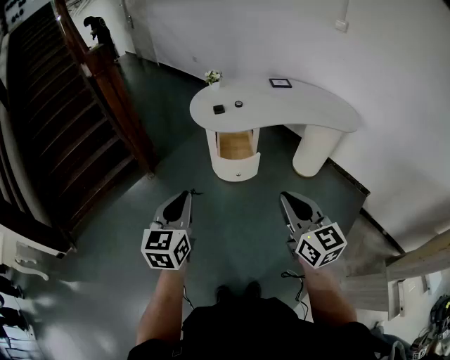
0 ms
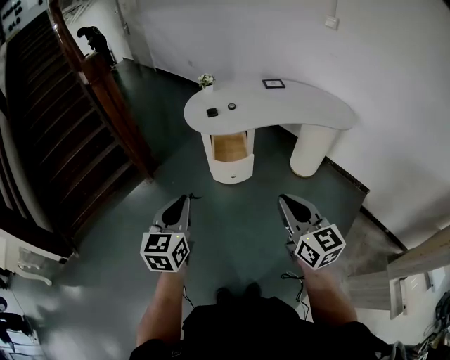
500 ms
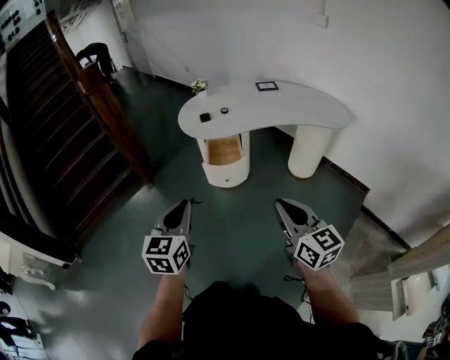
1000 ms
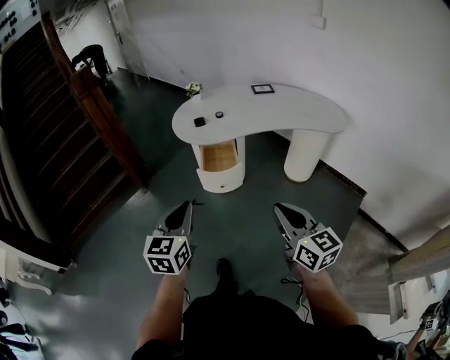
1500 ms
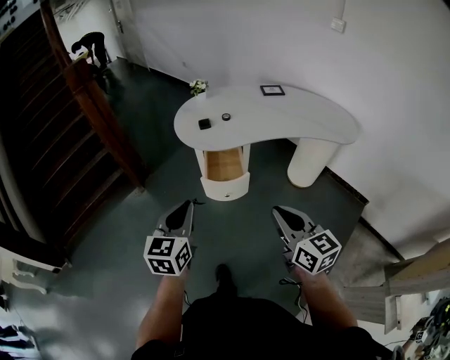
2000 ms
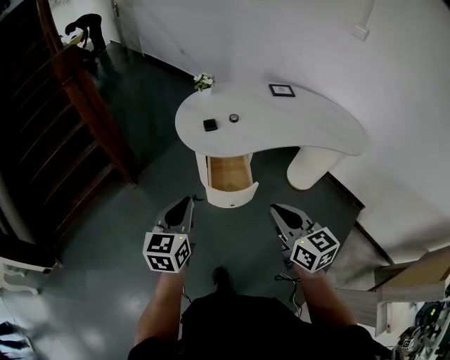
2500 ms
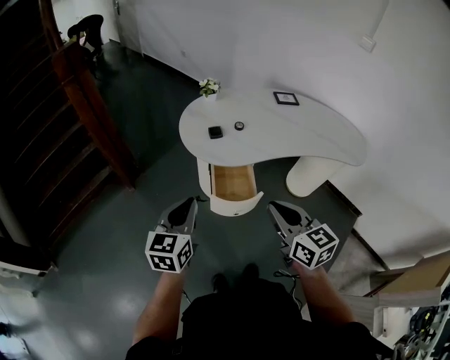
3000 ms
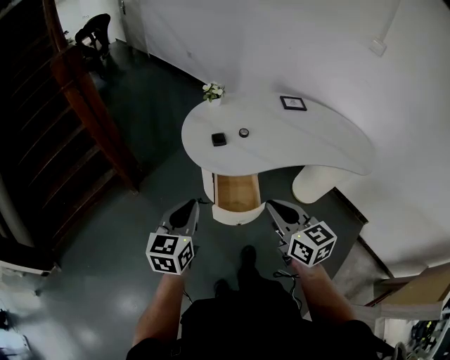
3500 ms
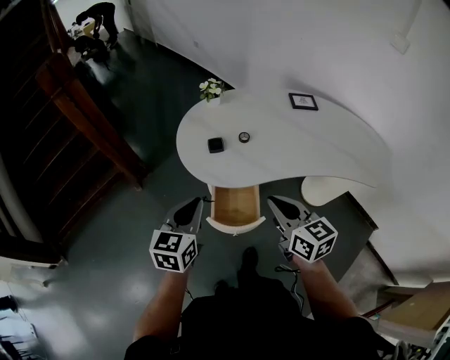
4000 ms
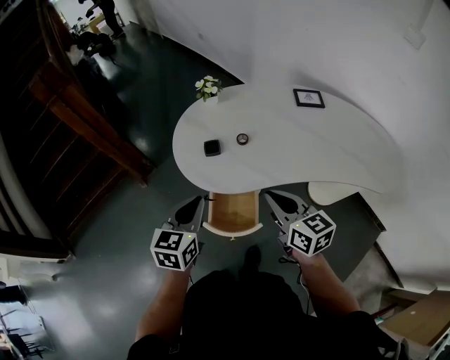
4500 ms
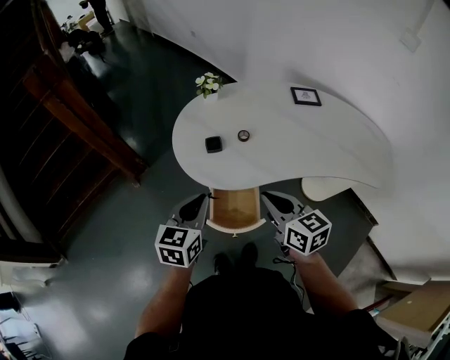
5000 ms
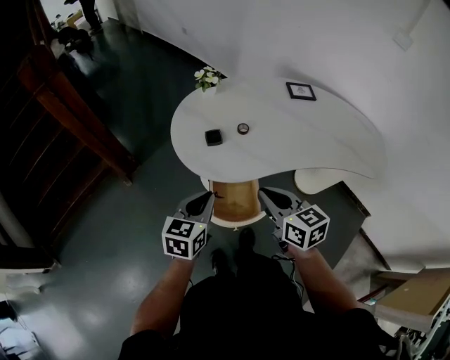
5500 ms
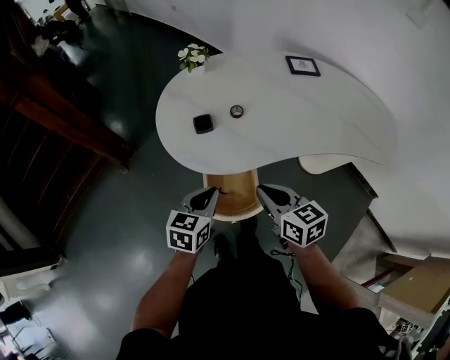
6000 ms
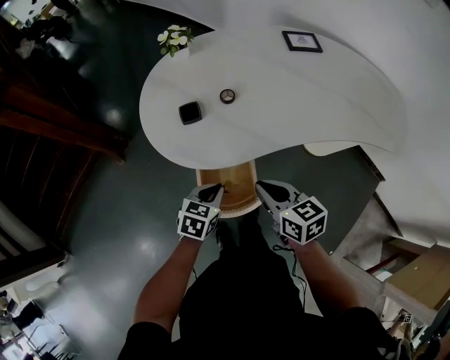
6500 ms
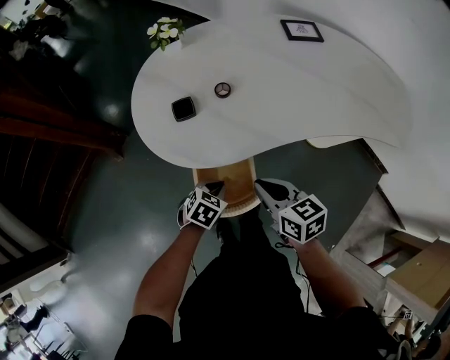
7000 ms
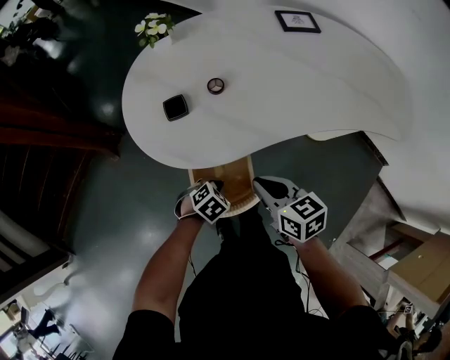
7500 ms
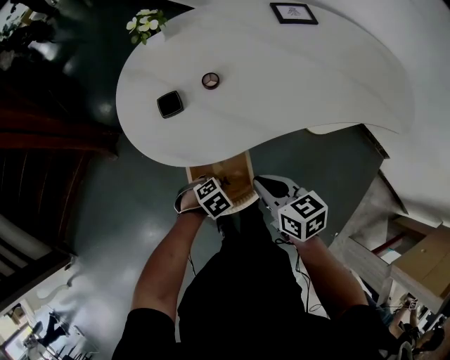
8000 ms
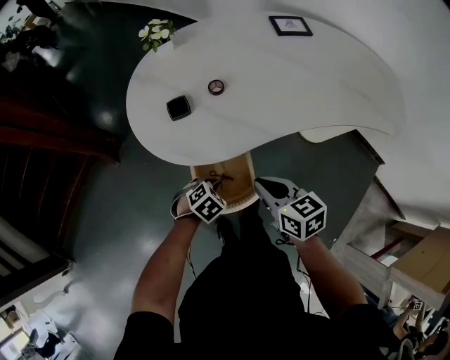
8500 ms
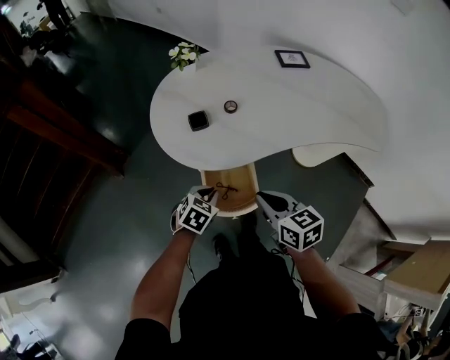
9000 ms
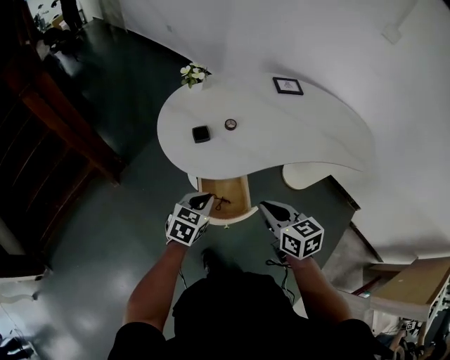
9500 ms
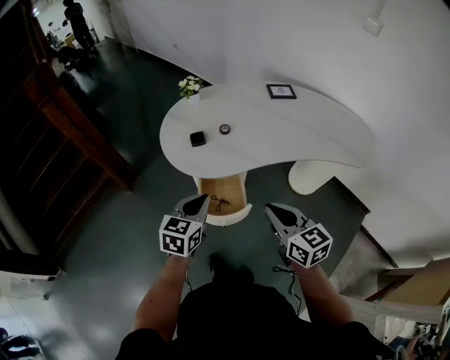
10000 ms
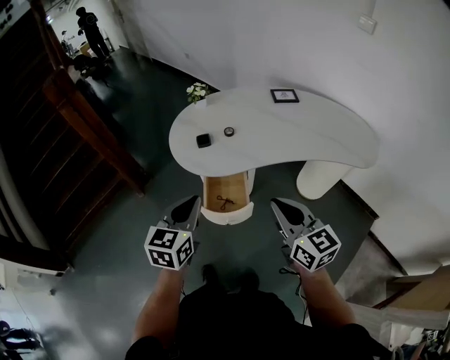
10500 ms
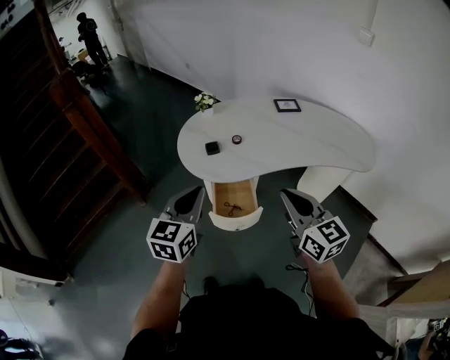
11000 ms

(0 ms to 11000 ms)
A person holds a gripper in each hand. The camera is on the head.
0 ms - 2000 ms: Both grippers travel together forward and to the right, about 10 cm.
2000 ms - 3500 ms: The grippers both shift forward by approximately 20 cm.
3500 ms - 5500 ms: The left gripper travels forward, to the right and downward by some 15 cm. Meanwhile the right gripper moves forward and downward, some 15 cm.
5500 ms - 7500 ms: The right gripper is displaced downward by about 15 cm. Meanwhile the left gripper is displaced downward by approximately 30 cm, and angles its fingers downward, by about 50 degrees.
7500 ms - 9000 ms: The left gripper is displaced upward by roughly 10 cm, and rotates approximately 20 degrees, while the right gripper goes roughly 5 cm upward.
9000 ms - 11000 ms: The right gripper is displaced upward and backward by some 25 cm, and rotates approximately 30 degrees. Meanwhile the left gripper goes about 35 cm upward, and points its fingers roughly 40 degrees further upward.

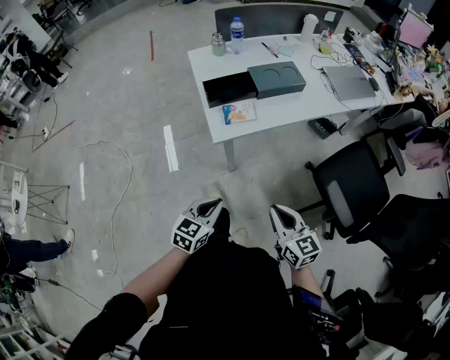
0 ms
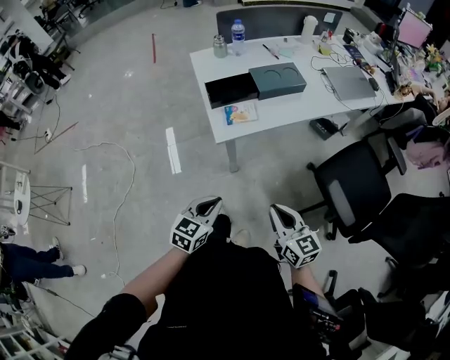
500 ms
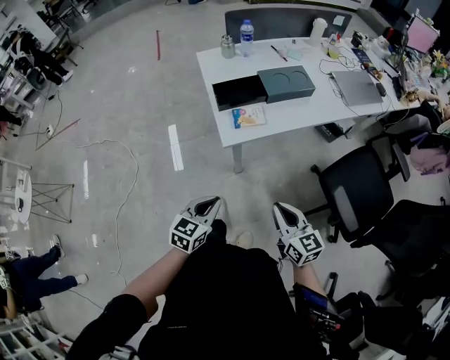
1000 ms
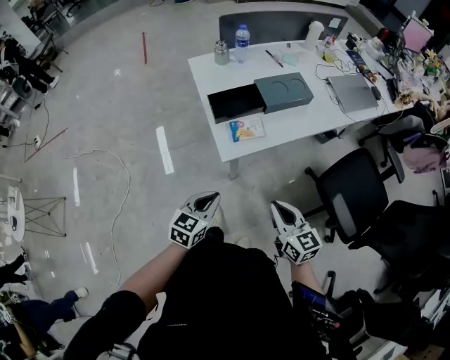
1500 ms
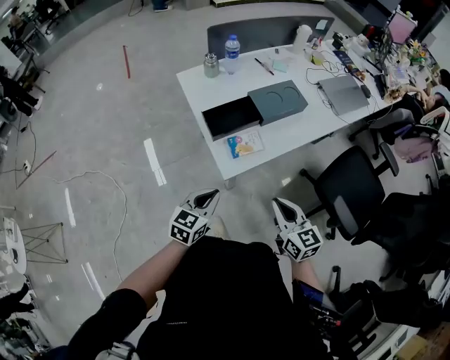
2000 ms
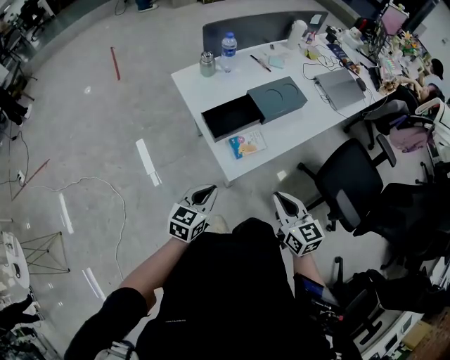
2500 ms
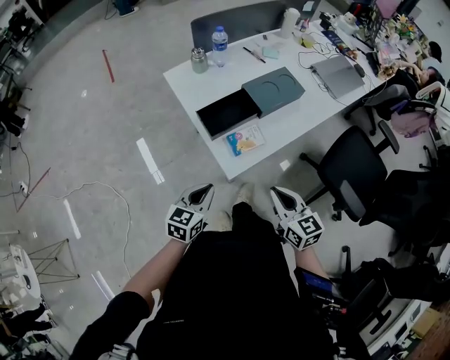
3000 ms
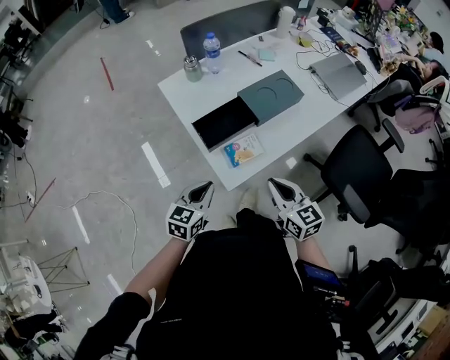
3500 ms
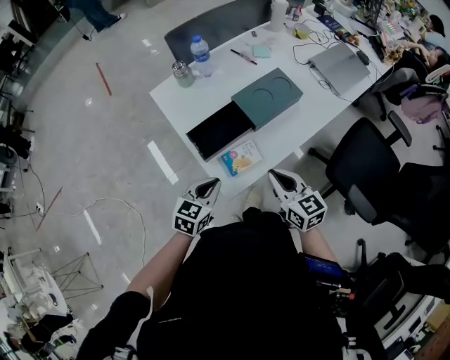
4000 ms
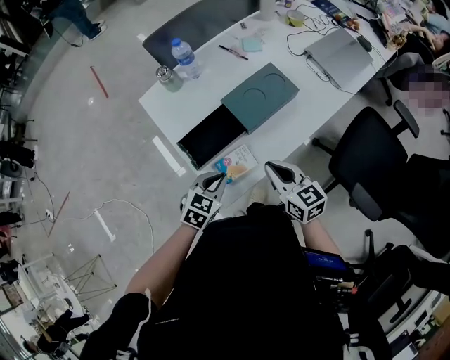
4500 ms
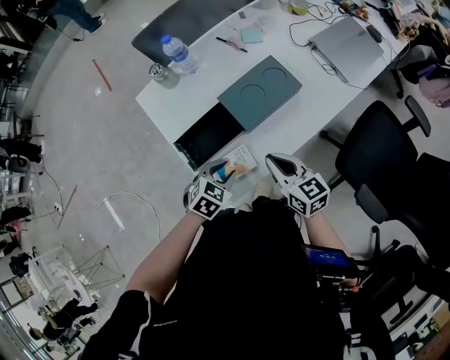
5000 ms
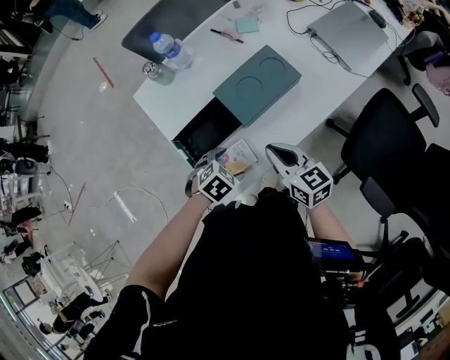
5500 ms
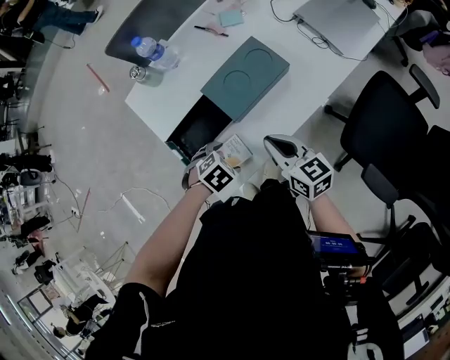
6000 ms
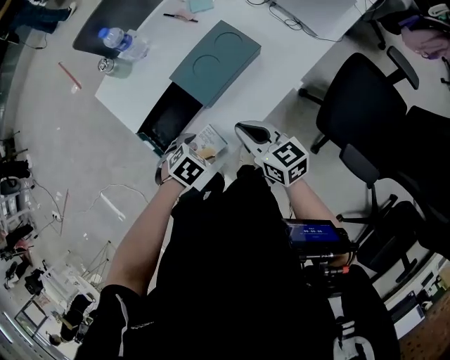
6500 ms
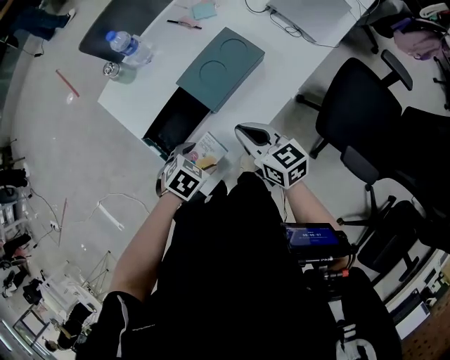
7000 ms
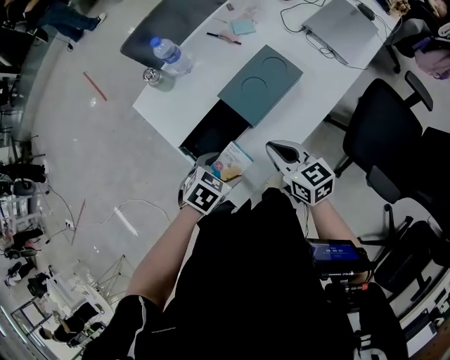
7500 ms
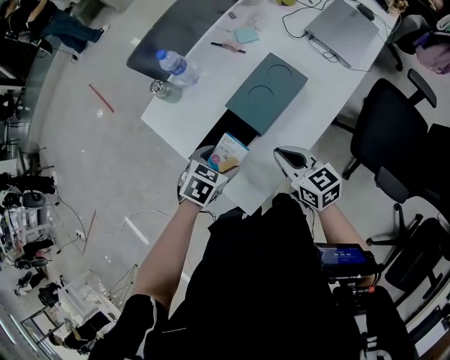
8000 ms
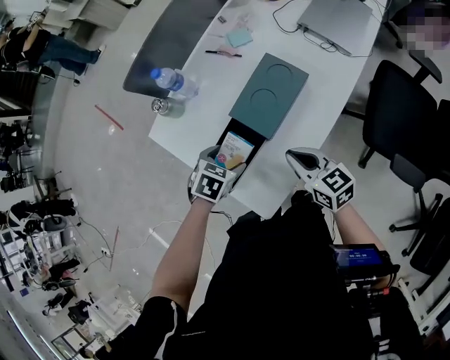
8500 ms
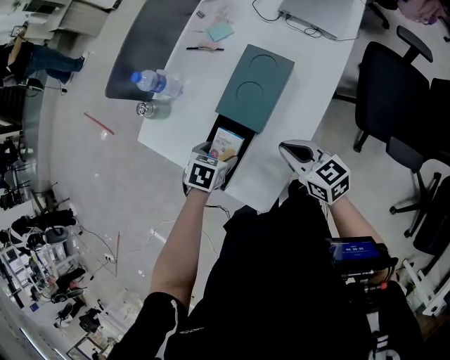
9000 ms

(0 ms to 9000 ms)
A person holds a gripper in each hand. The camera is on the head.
0 ms - 2000 ms: The two grippers go roughly 20 cm forward and to the left.
2000 ms - 4500 ms: The grippers both shift forward by approximately 20 cm. The left gripper rotates roughly 30 degrees.
4500 ms - 7000 ms: The left gripper turns by roughly 30 degrees, and opens up. Meanwhile the right gripper shifts by approximately 5 cm.
7000 ms - 9000 ms: The left gripper travels forward and to the left by roughly 15 cm.

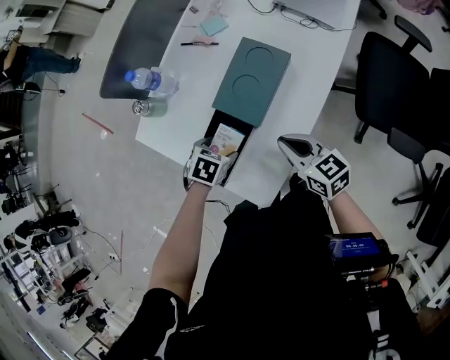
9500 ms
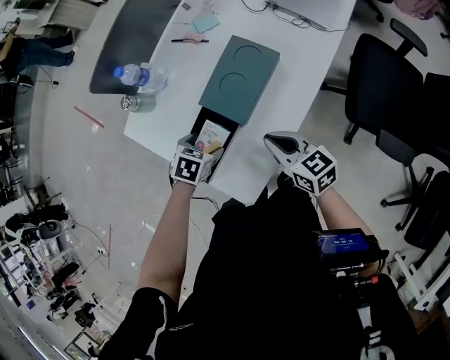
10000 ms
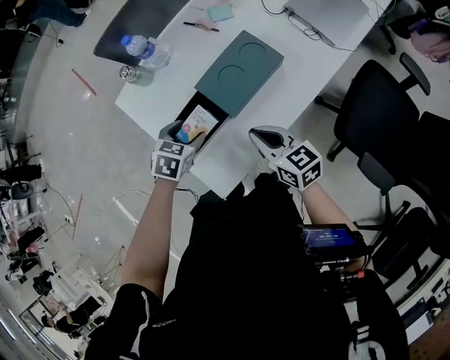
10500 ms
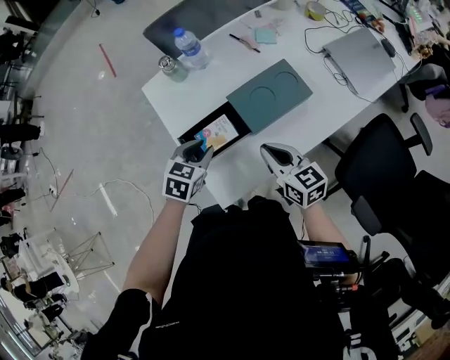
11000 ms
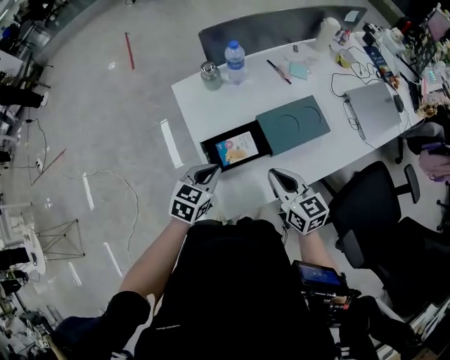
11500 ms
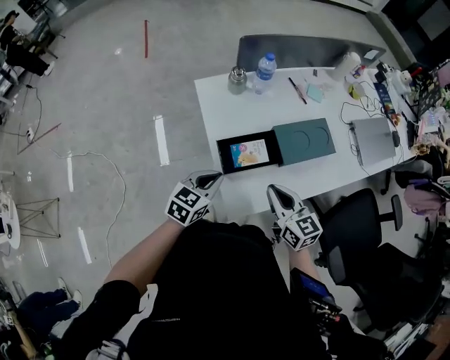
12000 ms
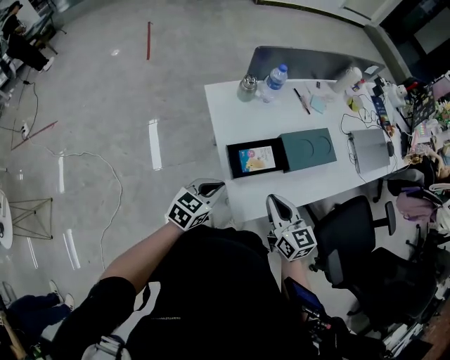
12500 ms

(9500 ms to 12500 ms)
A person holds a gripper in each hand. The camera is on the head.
9500 ms - 11000 ms: The right gripper swivels approximately 20 degrees; the left gripper shifts roughly 10 cm upward, rotates approximately 40 degrees, and closes.
11000 ms - 12500 ms: The right gripper shifts roughly 10 cm to the left and backward. The left gripper moves backward and to the left, approximately 15 cm, and turns by approximately 20 degrees.

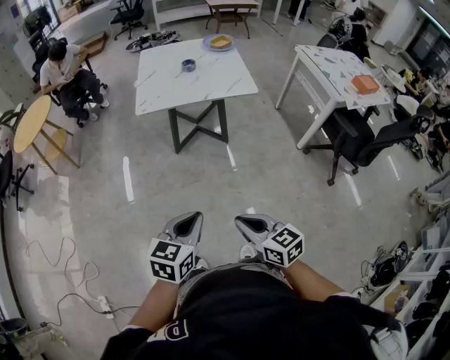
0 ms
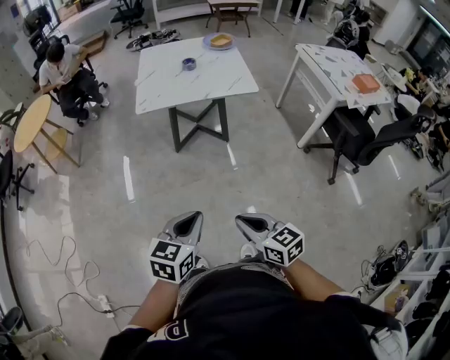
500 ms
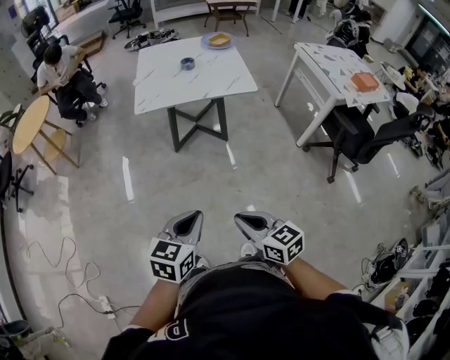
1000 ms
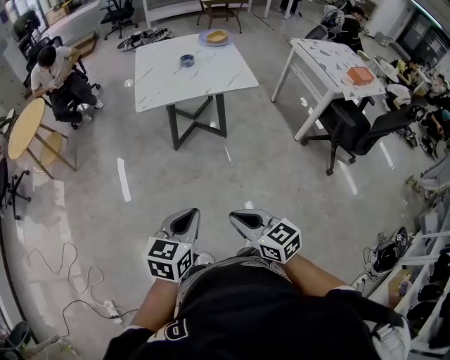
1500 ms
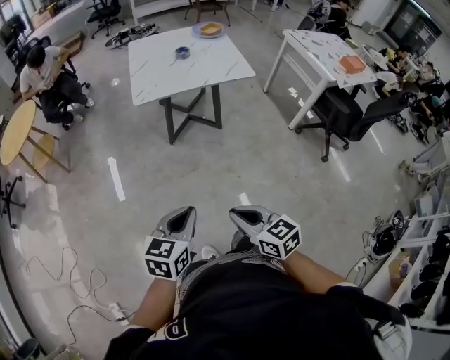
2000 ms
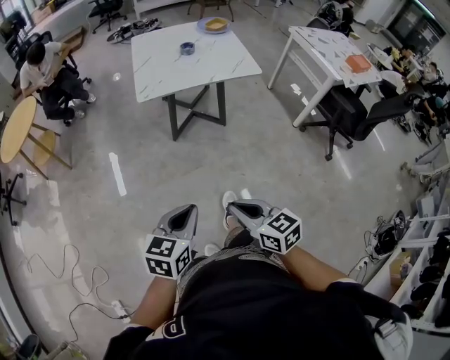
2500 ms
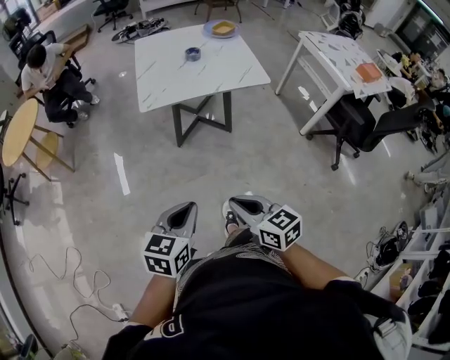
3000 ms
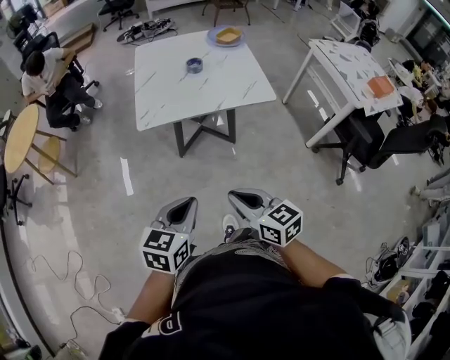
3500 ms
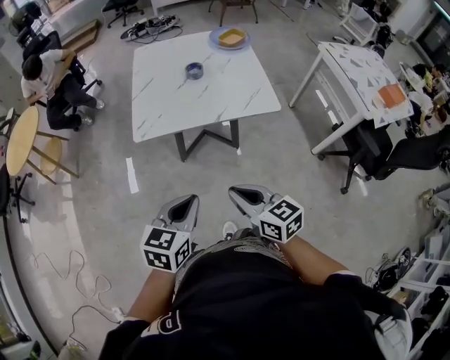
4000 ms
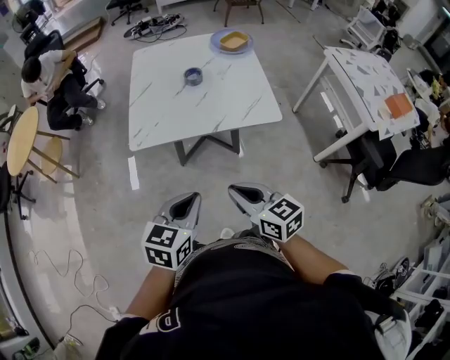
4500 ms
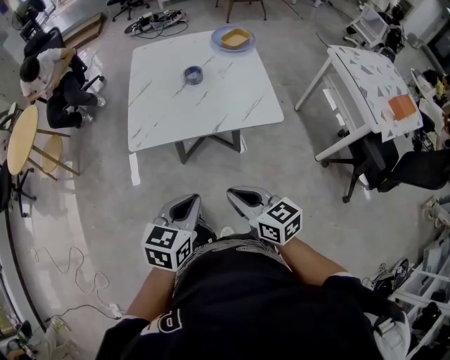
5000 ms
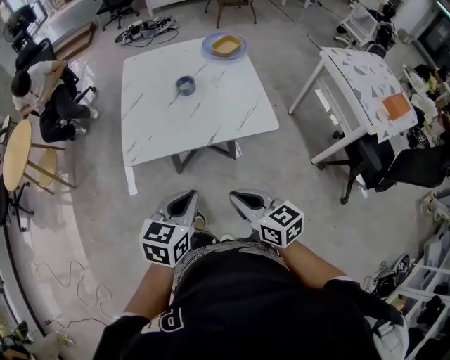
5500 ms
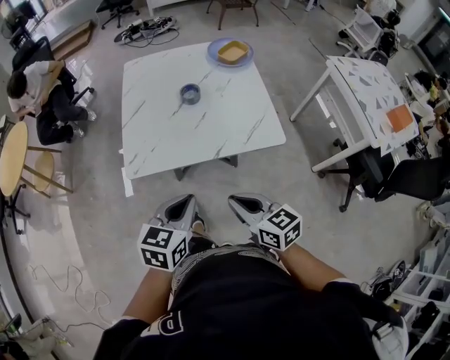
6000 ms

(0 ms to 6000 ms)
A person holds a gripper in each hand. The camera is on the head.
0 ms - 2000 ms: Both grippers travel together to the left, approximately 10 cm.
2000 ms - 4000 ms: Both grippers move forward, roughly 30 cm.
4000 ms - 6000 ms: Both grippers travel together forward, approximately 15 cm.
